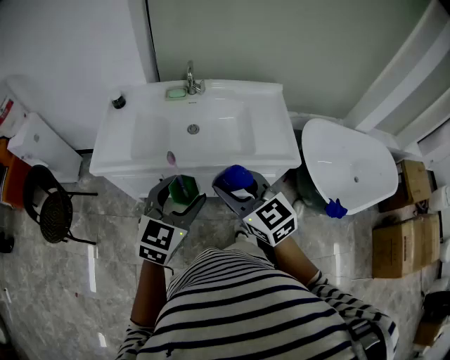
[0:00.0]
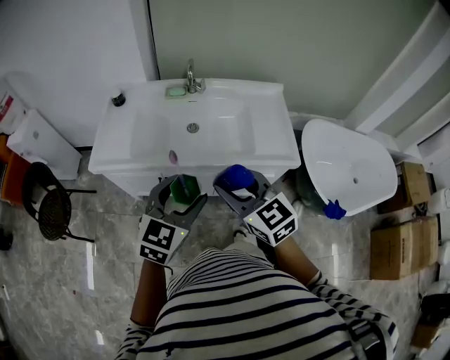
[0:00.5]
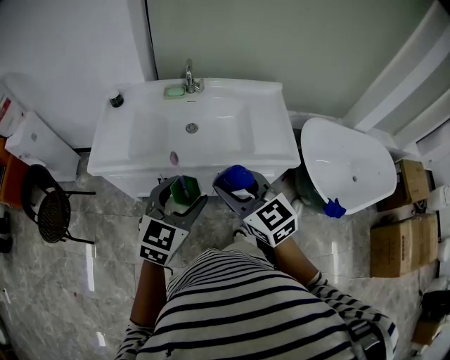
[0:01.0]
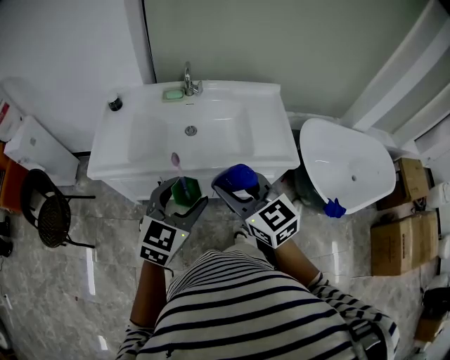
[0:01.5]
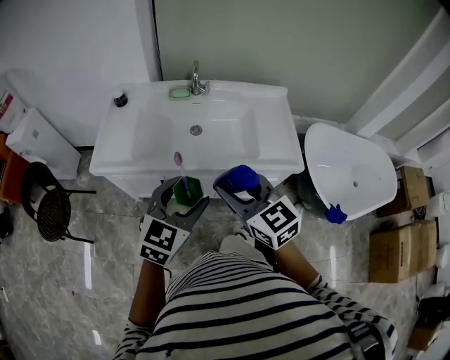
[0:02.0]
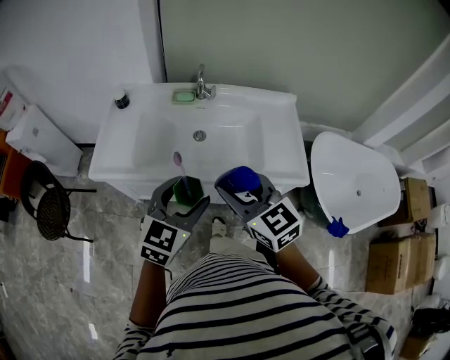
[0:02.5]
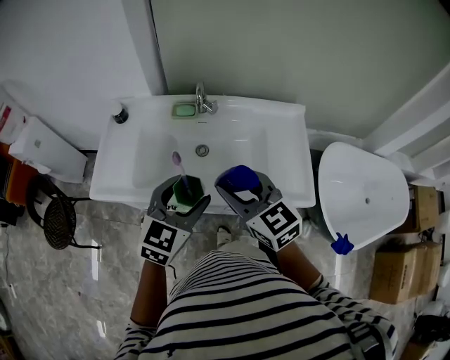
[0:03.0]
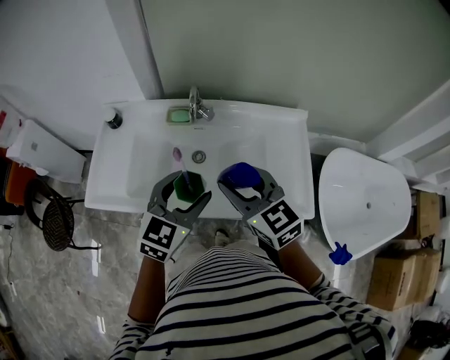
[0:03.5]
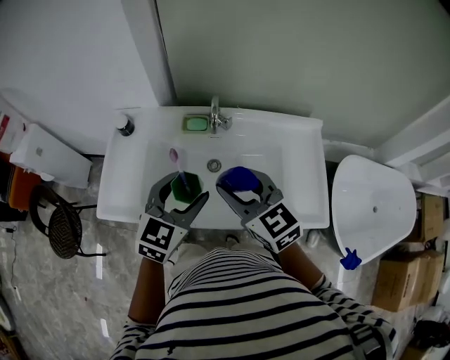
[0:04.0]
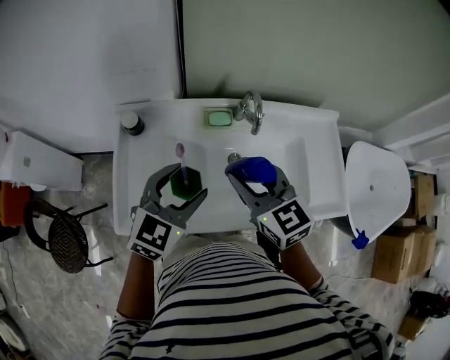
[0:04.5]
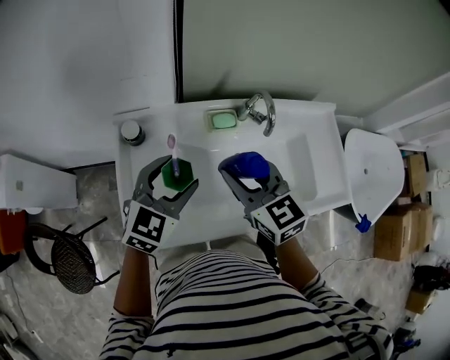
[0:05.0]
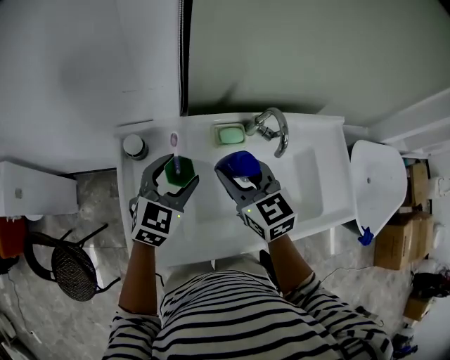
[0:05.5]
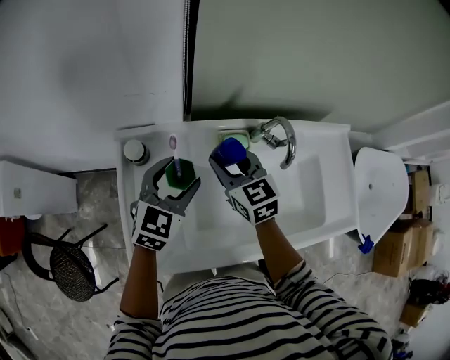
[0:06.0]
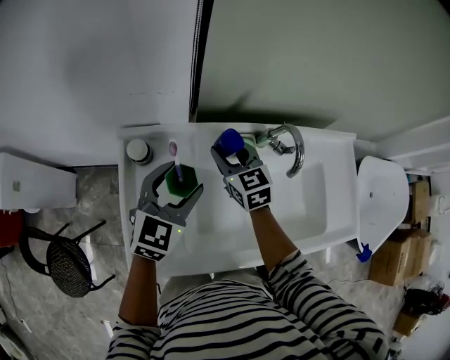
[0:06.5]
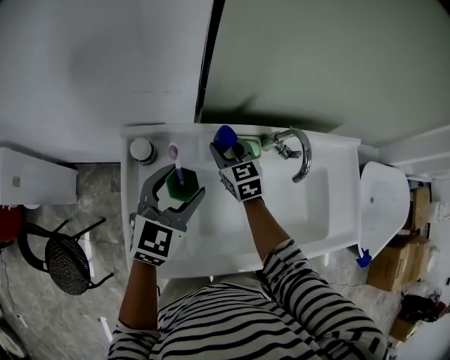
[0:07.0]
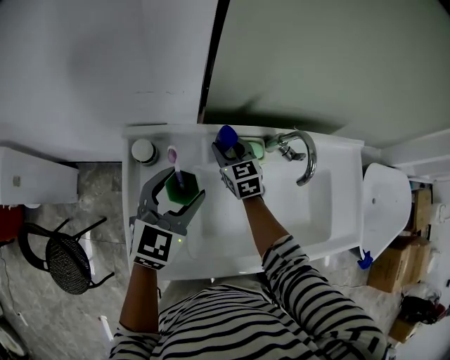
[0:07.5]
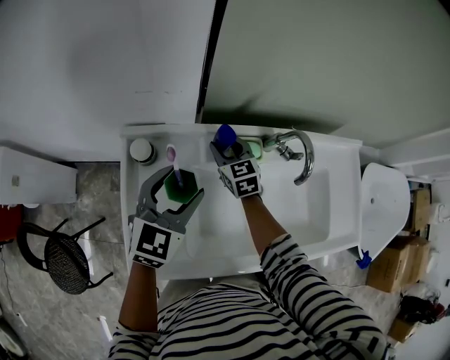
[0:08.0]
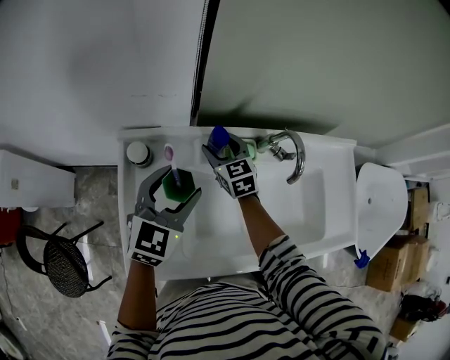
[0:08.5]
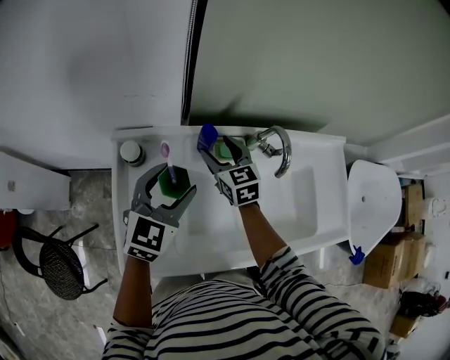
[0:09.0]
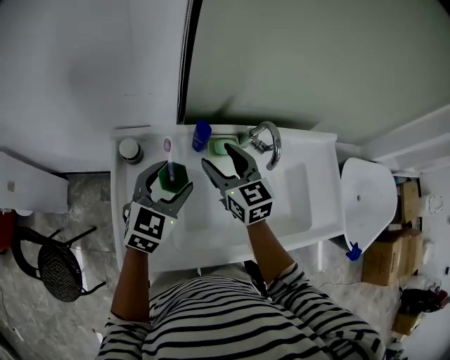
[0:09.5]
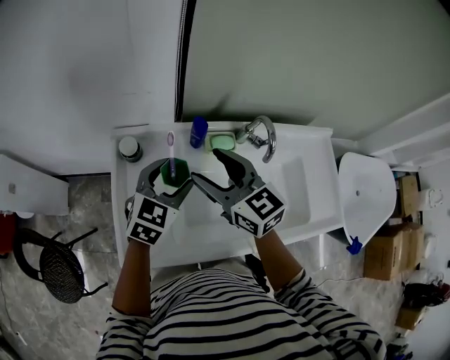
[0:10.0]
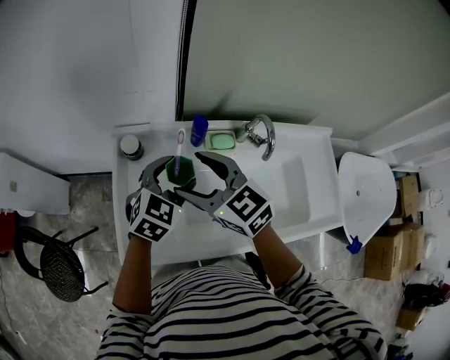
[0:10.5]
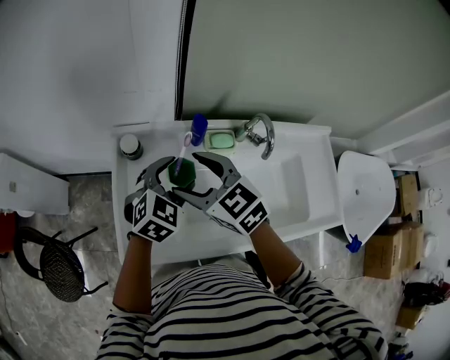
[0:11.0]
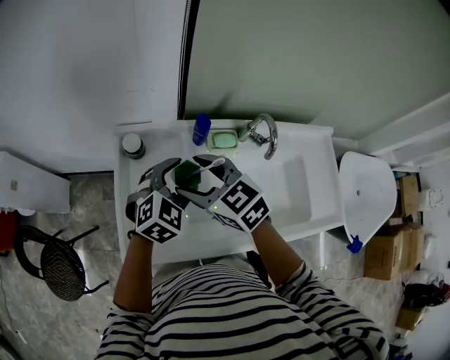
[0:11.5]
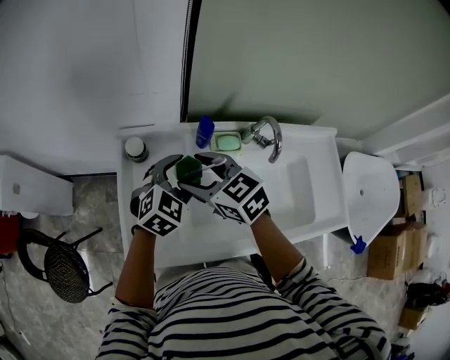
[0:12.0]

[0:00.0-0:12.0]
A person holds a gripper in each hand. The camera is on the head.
0:00.0 to 0:02.0: Neither gripper changes place.
0:02.0 to 0:04.0: Both grippers move forward, some 25 cm.
0:04.0 to 0:06.0: The right gripper travels forward, to the left and downward by approximately 35 cm, and rotates roughly 20 degrees. The left gripper shifts about 30 cm to the left, forward and downward.
0:06.0 to 0:08.0: The right gripper is displaced downward and forward by approximately 15 cm.
0:08.0 to 0:10.0: The right gripper heads upward and backward, covering about 25 cm, and changes its angle by roughly 20 degrees.
0:10.0 to 0:12.0: The right gripper moves to the left, roughly 5 cm.

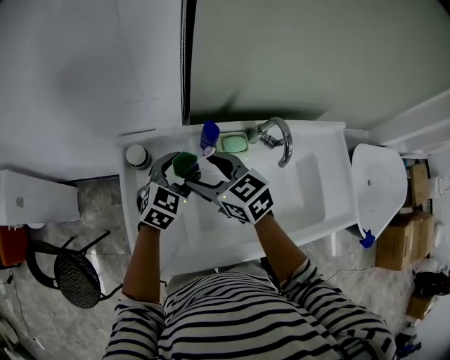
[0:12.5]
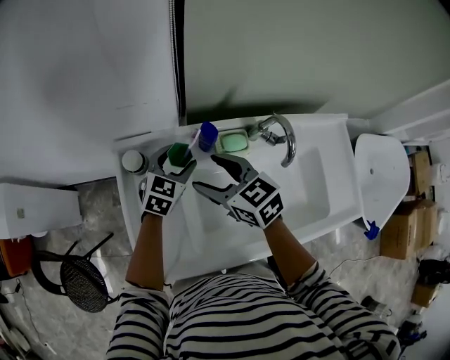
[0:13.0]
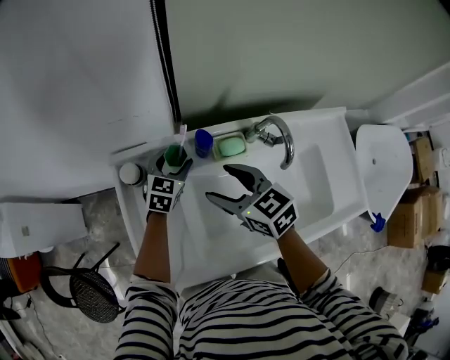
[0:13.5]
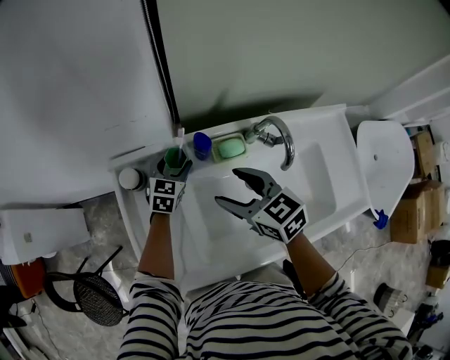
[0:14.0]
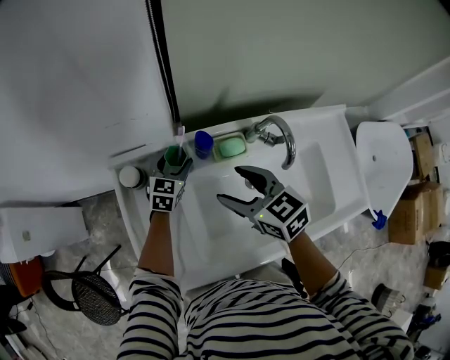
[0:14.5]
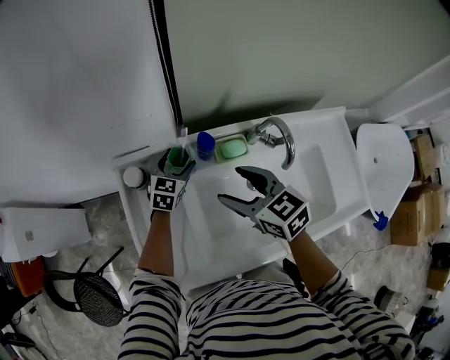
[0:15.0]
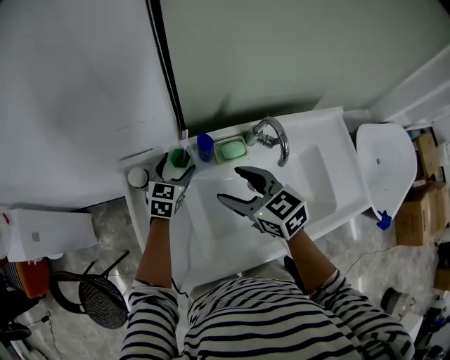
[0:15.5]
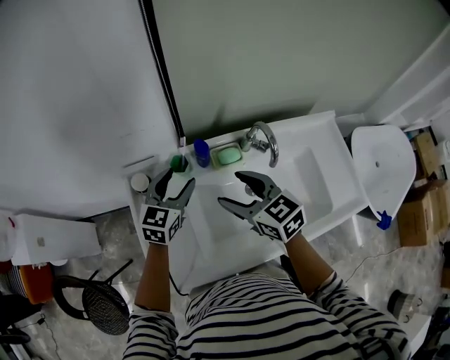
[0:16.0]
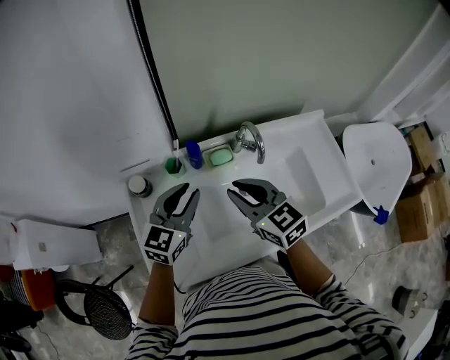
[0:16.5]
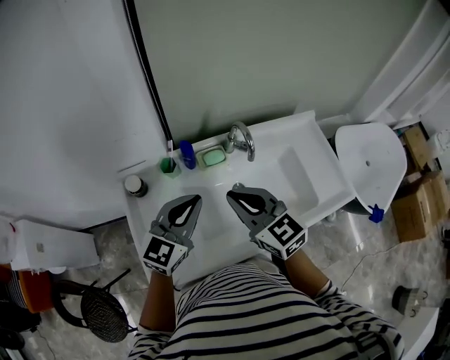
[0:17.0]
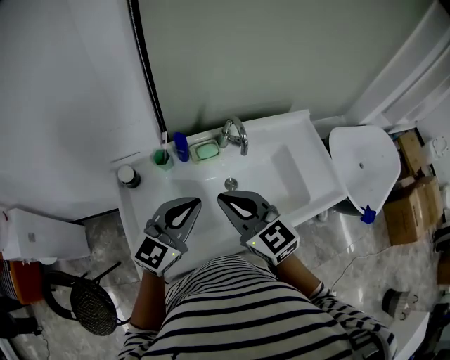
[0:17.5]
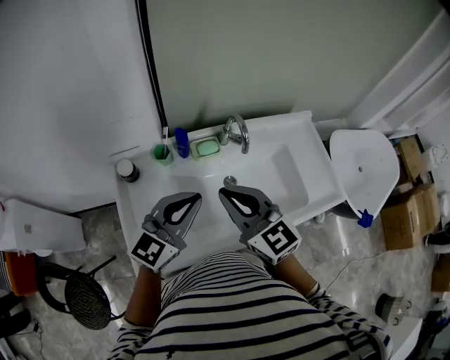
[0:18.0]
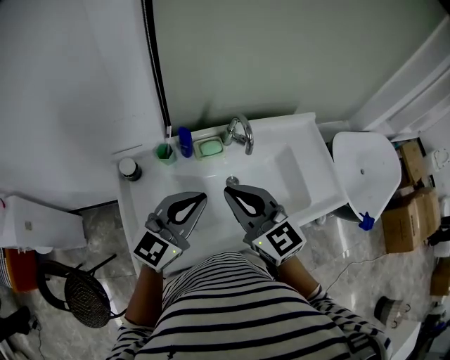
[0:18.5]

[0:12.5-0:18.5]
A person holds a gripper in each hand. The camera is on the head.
0:12.5 to 0:14.5: The right gripper heads to the right, covering about 10 cm. Meanwhile the left gripper moves downward and forward, about 15 cm.
0:14.5 to 0:16.5: The left gripper is displaced upward and backward by approximately 25 cm, and closes up; the right gripper travels upward and backward by some 10 cm, and closes up.
0:16.5 to 0:18.5: The left gripper shifts approximately 15 cm backward, upward and to the right; the right gripper goes roughly 10 cm backward and upward.

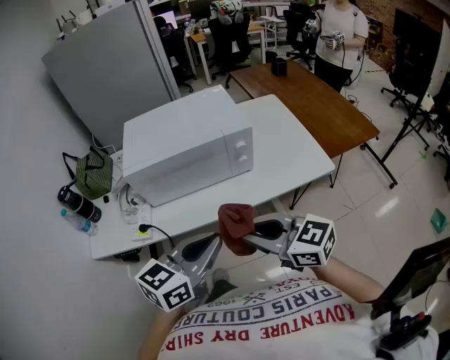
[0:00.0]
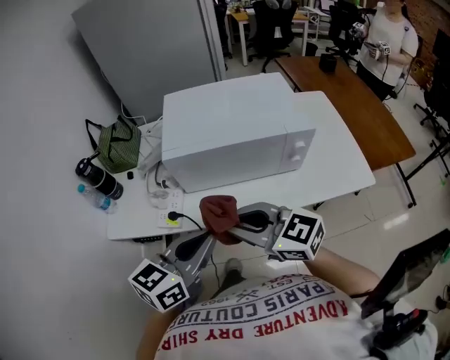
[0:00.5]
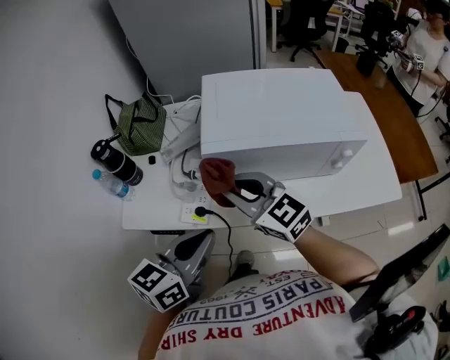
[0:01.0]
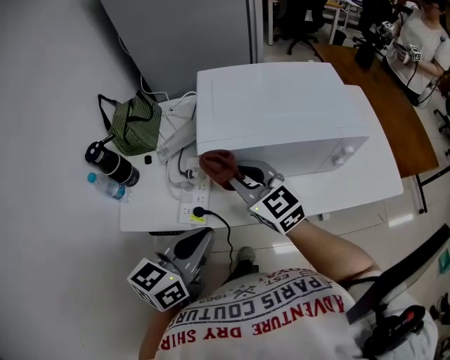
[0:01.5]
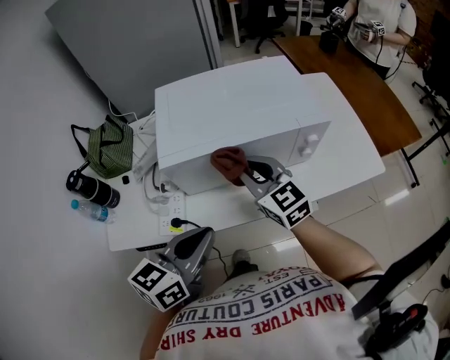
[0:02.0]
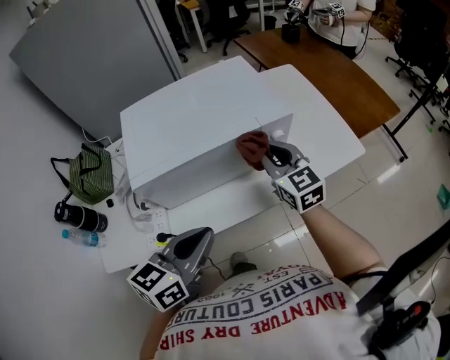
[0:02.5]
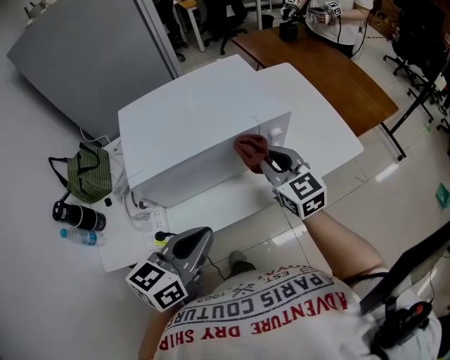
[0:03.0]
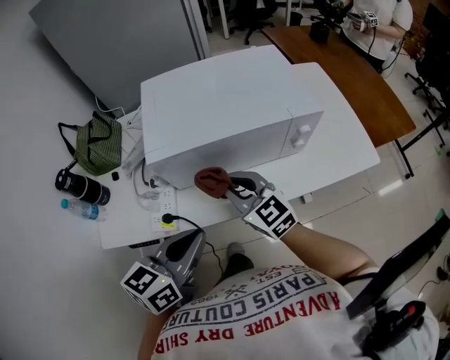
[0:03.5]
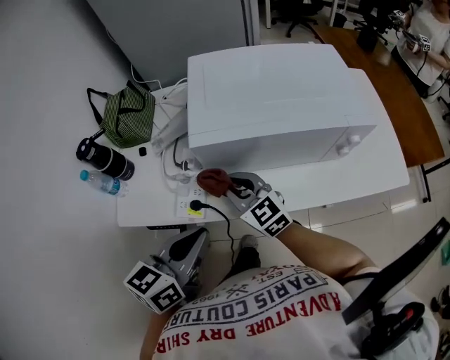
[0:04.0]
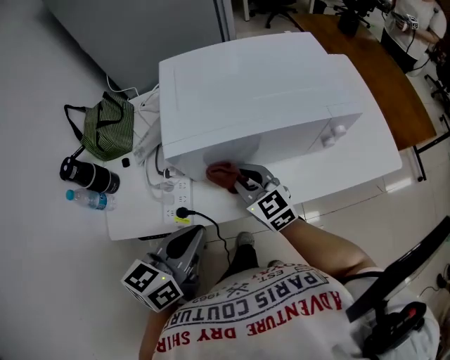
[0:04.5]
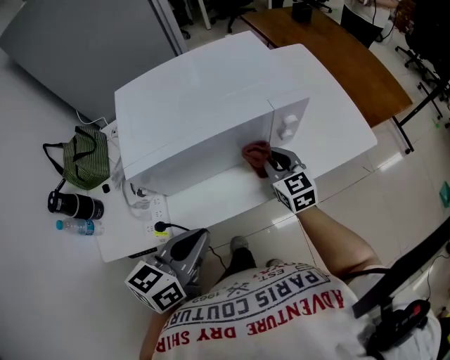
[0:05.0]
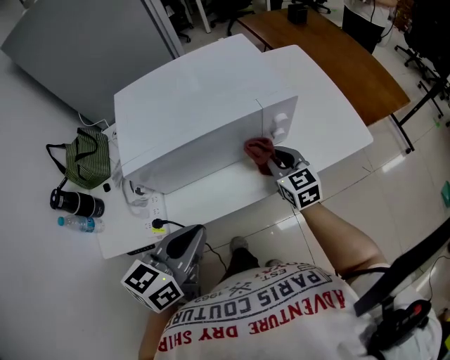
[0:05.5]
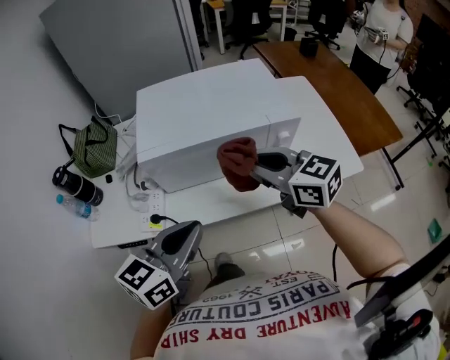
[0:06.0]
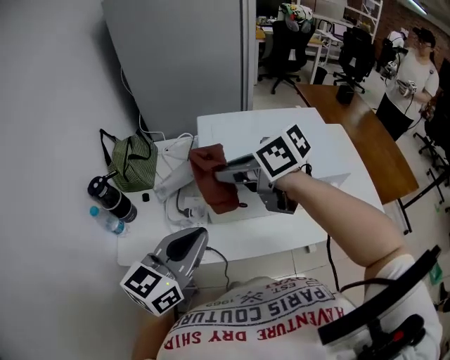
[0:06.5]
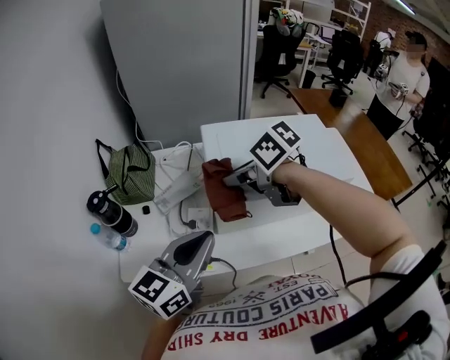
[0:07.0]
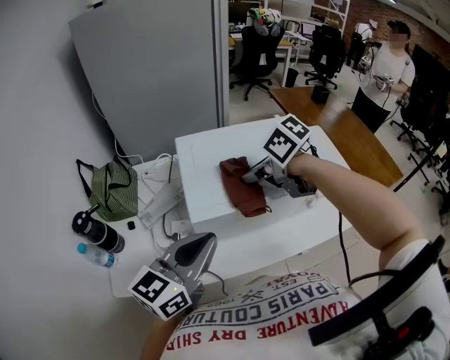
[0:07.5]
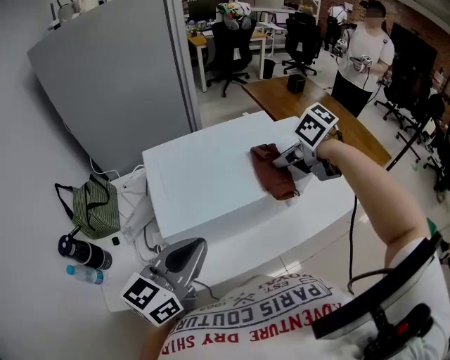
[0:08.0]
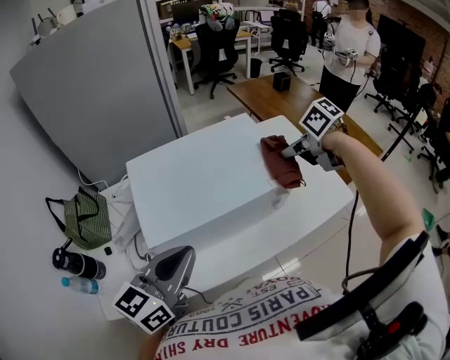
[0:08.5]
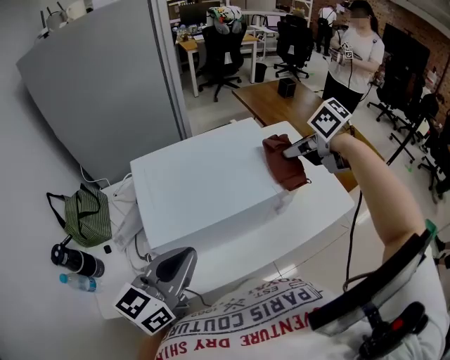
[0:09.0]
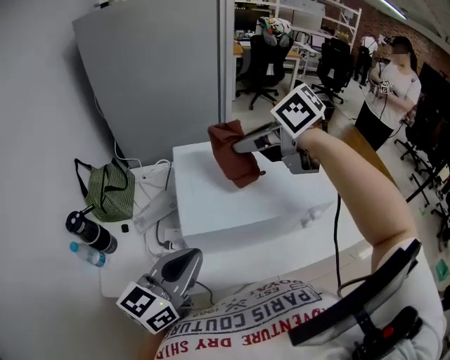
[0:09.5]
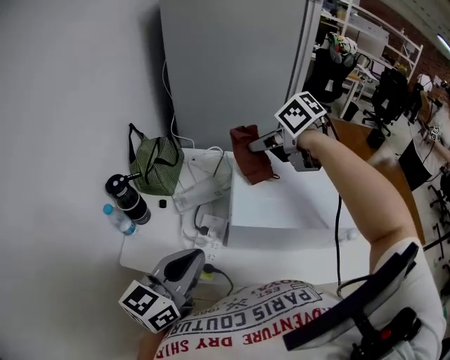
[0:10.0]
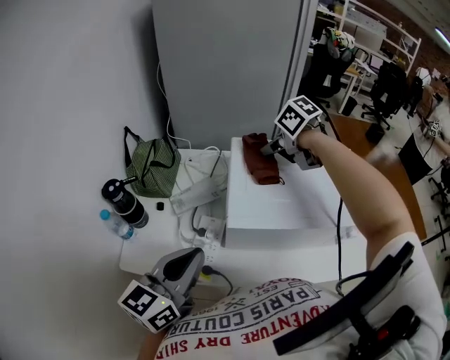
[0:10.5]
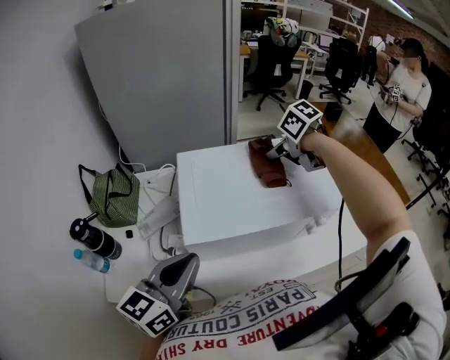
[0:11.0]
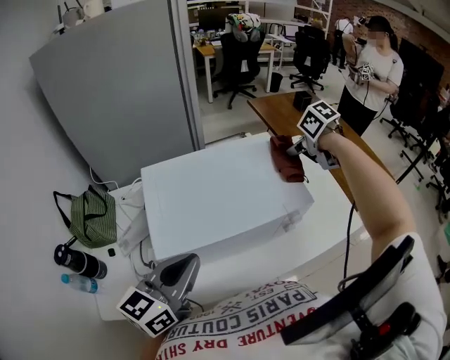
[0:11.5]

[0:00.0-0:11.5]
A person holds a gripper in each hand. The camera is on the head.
0:00.0 to 0:02.0: The left gripper is displaced to the left and forward by roughly 20 cm. The right gripper is displaced forward by some 25 cm, and swivels roughly 20 degrees.
0:02.0 to 0:04.0: The right gripper shifts by some 15 cm; the left gripper ends up about 10 cm from where it was.
0:04.0 to 0:06.0: The left gripper changes place by approximately 15 cm. The right gripper shifts by some 25 cm.
0:06.0 to 0:07.5: The left gripper heads forward, upward and to the left, covering about 15 cm; the right gripper shifts some 20 cm forward, and points its fingers approximately 30 degrees further downward.
0:07.5 to 0:09.5: The right gripper moves upward and forward, roughly 15 cm, and reaches approximately 30 cm to the right, then returns.
0:09.5 to 0:11.5: The right gripper ends up roughly 35 cm from where it was, and rotates roughly 40 degrees. Meanwhile the left gripper ends up about 10 cm from where it was.
